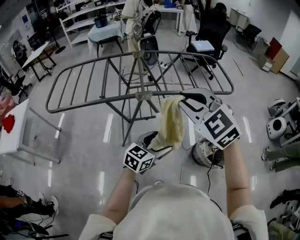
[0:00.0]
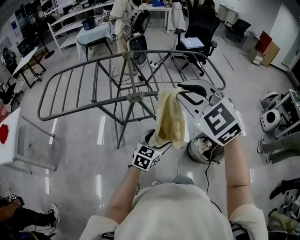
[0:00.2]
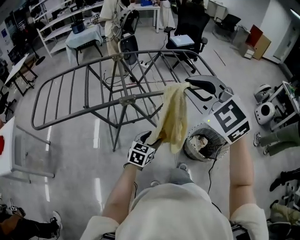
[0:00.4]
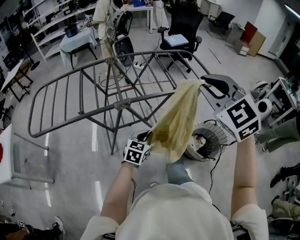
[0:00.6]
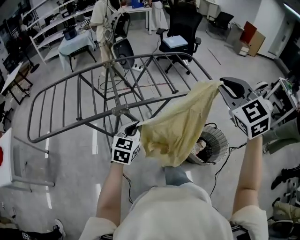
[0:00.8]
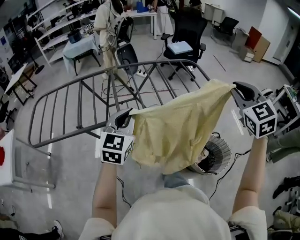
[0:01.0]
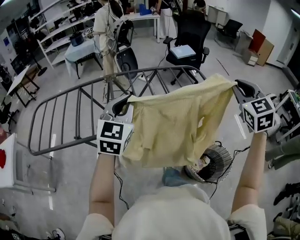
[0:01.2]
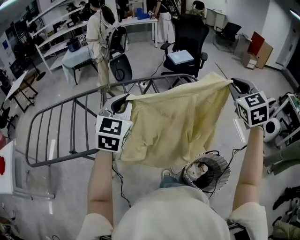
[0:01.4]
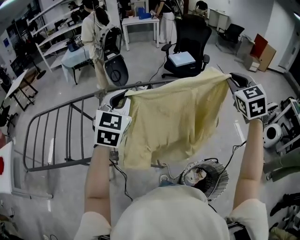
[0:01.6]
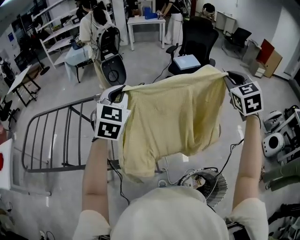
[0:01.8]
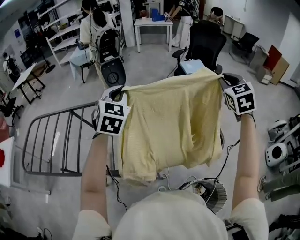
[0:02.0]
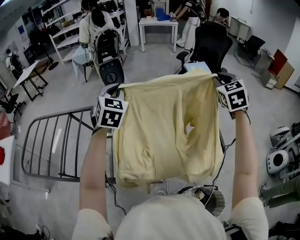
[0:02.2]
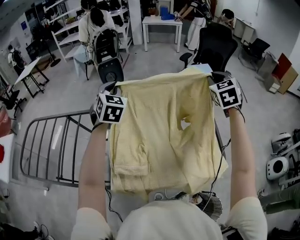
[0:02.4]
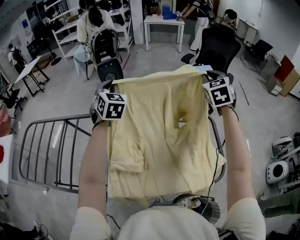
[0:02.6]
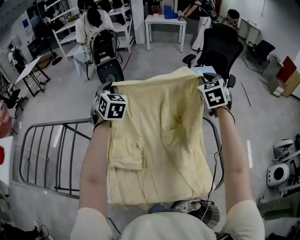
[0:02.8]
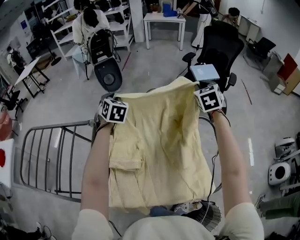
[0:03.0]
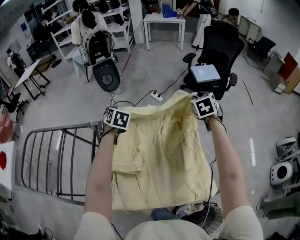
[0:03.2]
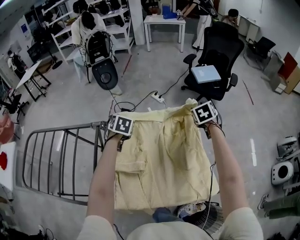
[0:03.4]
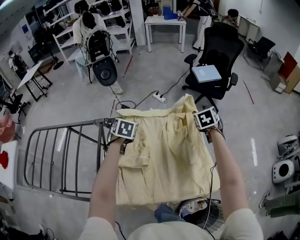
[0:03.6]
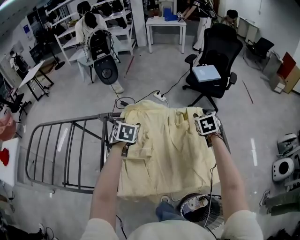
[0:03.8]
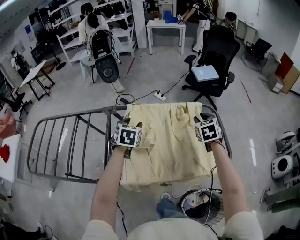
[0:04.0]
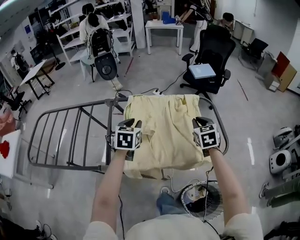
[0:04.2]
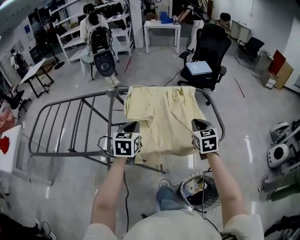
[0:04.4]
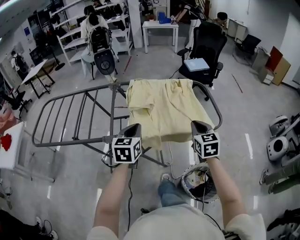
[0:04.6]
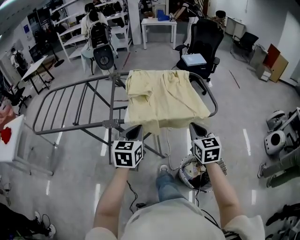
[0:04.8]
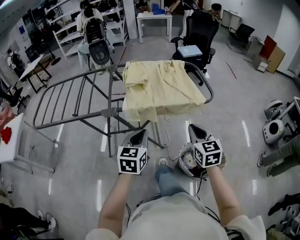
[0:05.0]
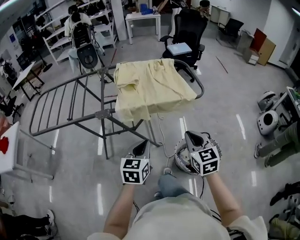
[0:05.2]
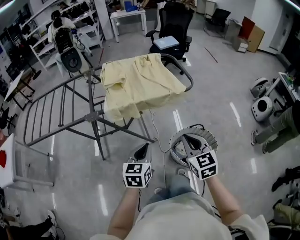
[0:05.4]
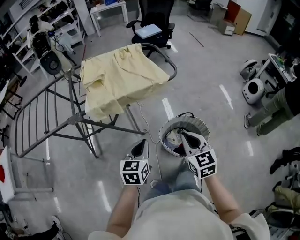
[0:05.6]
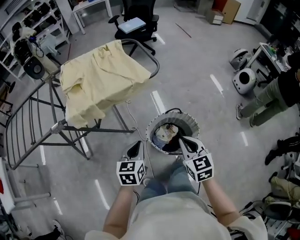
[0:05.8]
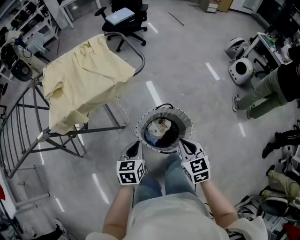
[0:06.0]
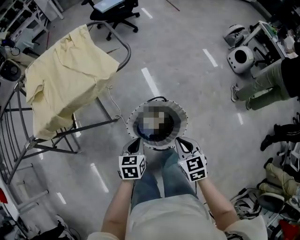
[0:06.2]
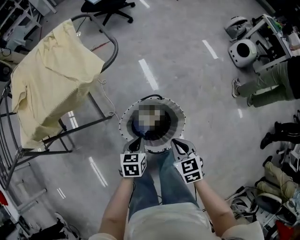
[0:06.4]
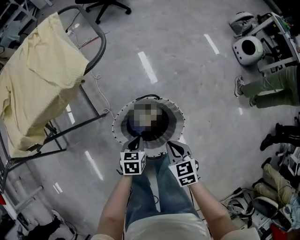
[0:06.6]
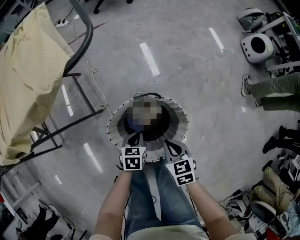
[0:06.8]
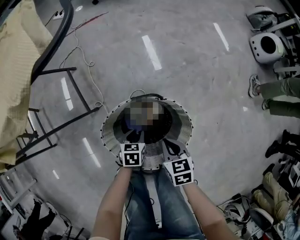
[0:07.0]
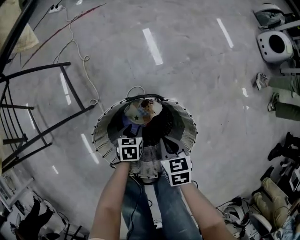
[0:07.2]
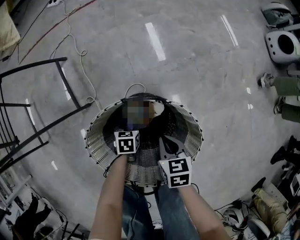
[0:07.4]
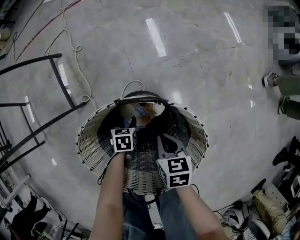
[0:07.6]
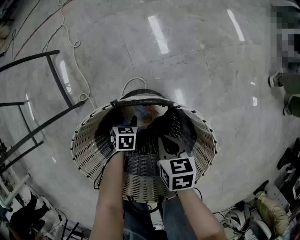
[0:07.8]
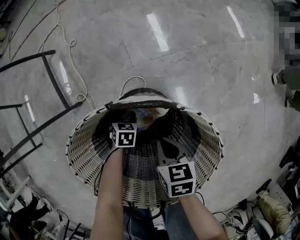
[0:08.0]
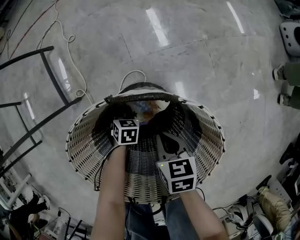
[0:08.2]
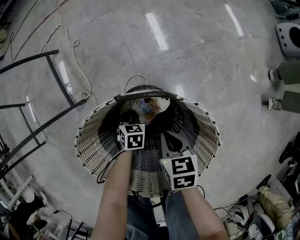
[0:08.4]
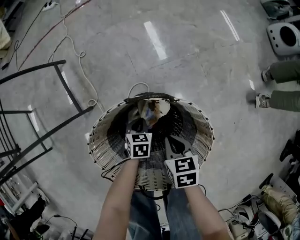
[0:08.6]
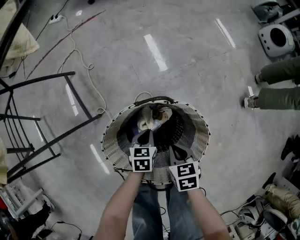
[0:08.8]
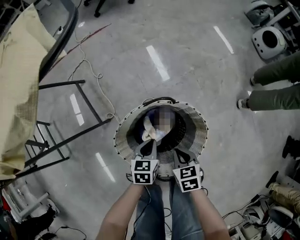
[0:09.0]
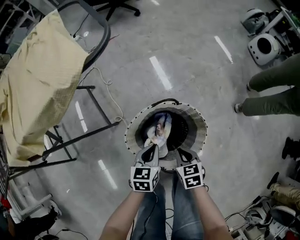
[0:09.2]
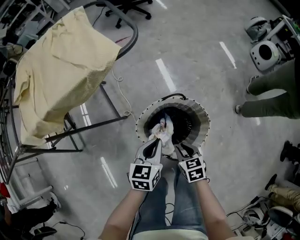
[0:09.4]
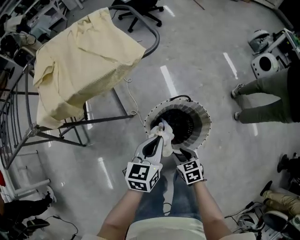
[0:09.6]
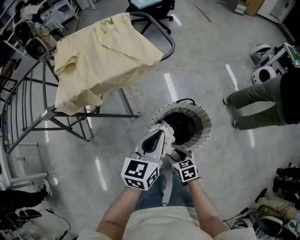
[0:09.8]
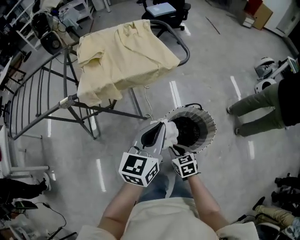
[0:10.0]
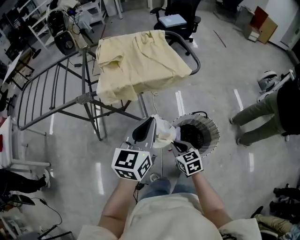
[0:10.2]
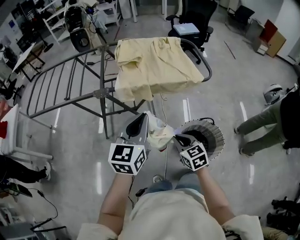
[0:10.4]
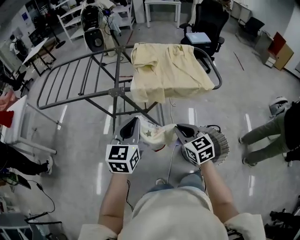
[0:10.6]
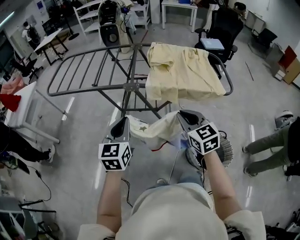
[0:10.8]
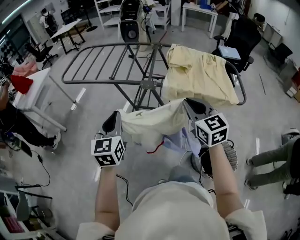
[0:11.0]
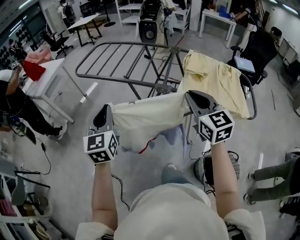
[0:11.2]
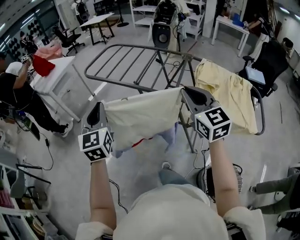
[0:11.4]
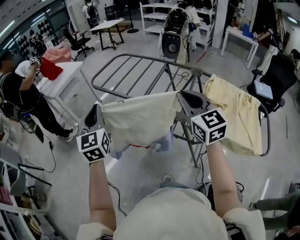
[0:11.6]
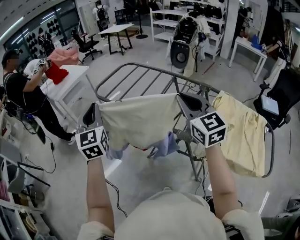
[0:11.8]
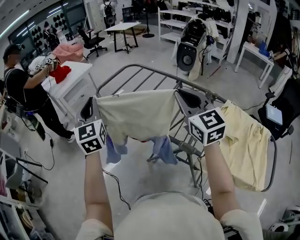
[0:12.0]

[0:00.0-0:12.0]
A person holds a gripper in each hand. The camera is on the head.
0:00.0 to 0:01.6: The left gripper goes roughly 50 cm forward and upward, rotates roughly 40 degrees, and closes up. Meanwhile the right gripper goes approximately 50 cm forward and to the right, and turns by some 40 degrees.
0:01.6 to 0:03.0: Both grippers travel together forward, some 40 cm. The left gripper turns by about 40 degrees.
0:03.0 to 0:04.4: The grippers both shift backward by roughly 40 cm. The right gripper opens and closes again, while the left gripper changes its angle by about 30 degrees, and opens, then closes again.
0:04.4 to 0:06.0: The pair of grippers is taken backward and to the right, some 50 cm. The left gripper goes some 20 cm downward, and rotates roughly 30 degrees.
0:06.0 to 0:07.6: The grippers both shift downward by approximately 60 cm. The left gripper points its fingers some 30 degrees further downward, and opens its fingers; the right gripper swivels about 30 degrees.
0:07.6 to 0:09.0: The left gripper moves upward, approximately 25 cm, changes its angle by roughly 20 degrees, and closes its fingers. The right gripper moves upward and backward, roughly 15 cm.
0:09.0 to 0:10.4: Both grippers travel together upward, about 50 cm. The right gripper turns by roughly 40 degrees, and opens, then closes once more. Meanwhile the left gripper tips its fingers upward by approximately 40 degrees.
0:10.4 to 0:12.0: Both grippers are carried roughly 60 cm. The right gripper tips its fingers upward by some 30 degrees. The left gripper changes its angle by some 80 degrees.

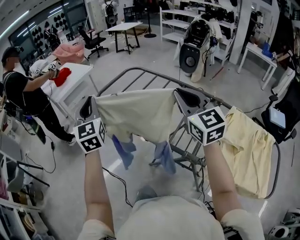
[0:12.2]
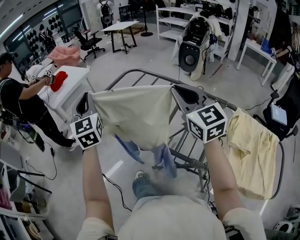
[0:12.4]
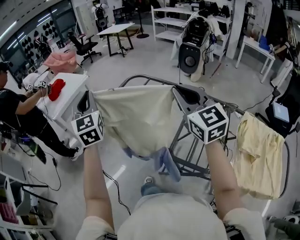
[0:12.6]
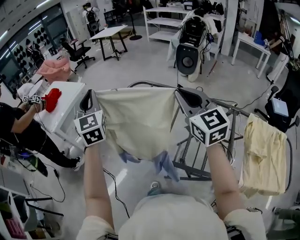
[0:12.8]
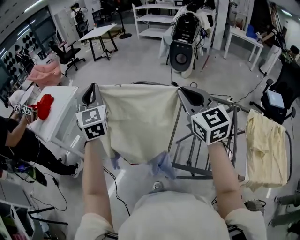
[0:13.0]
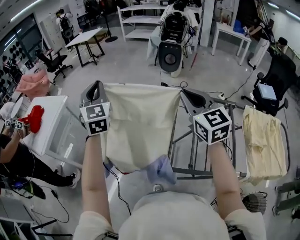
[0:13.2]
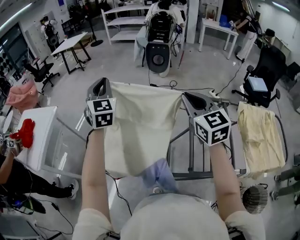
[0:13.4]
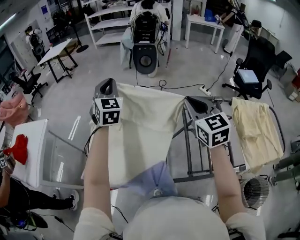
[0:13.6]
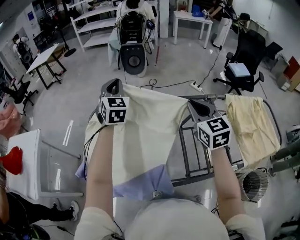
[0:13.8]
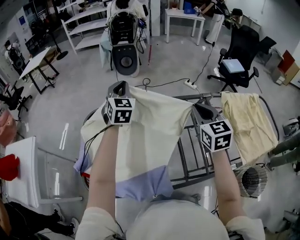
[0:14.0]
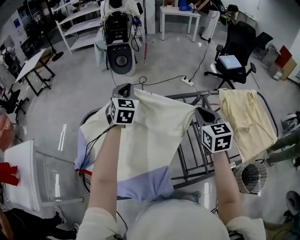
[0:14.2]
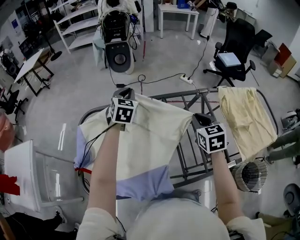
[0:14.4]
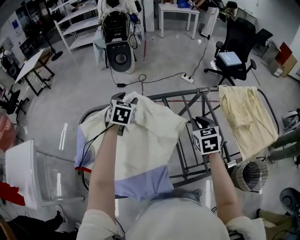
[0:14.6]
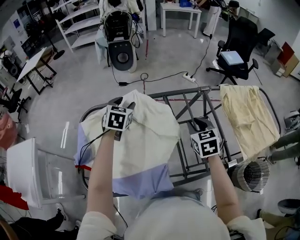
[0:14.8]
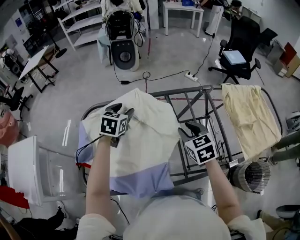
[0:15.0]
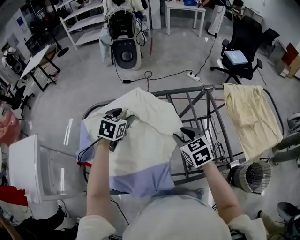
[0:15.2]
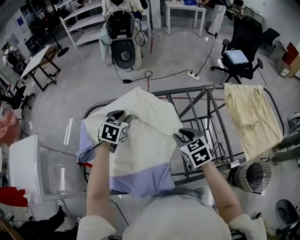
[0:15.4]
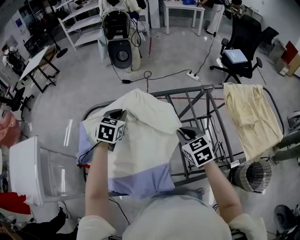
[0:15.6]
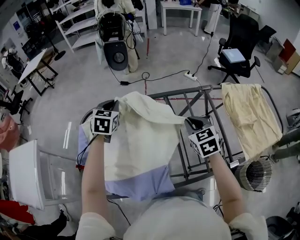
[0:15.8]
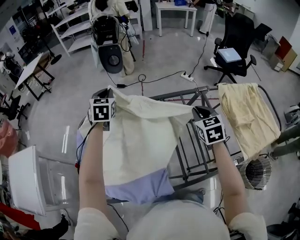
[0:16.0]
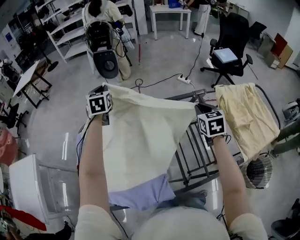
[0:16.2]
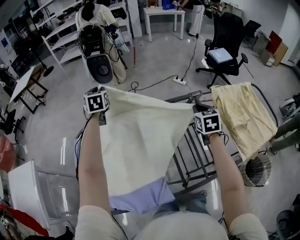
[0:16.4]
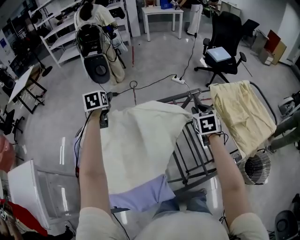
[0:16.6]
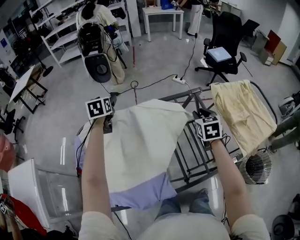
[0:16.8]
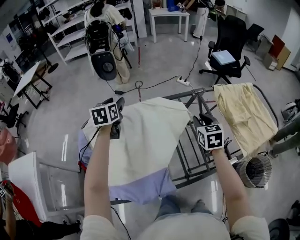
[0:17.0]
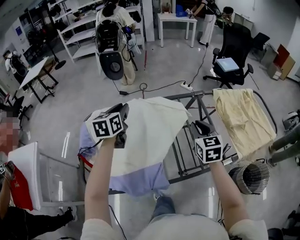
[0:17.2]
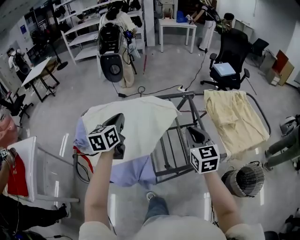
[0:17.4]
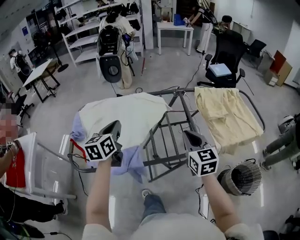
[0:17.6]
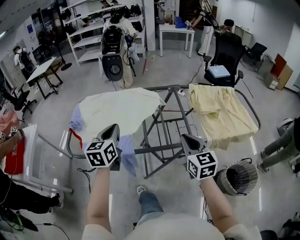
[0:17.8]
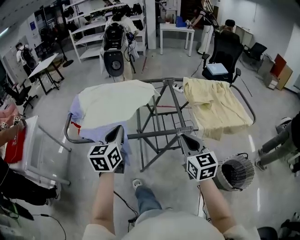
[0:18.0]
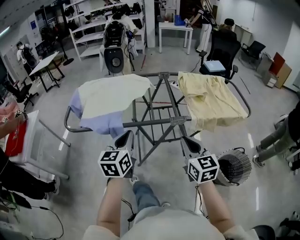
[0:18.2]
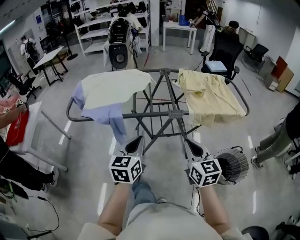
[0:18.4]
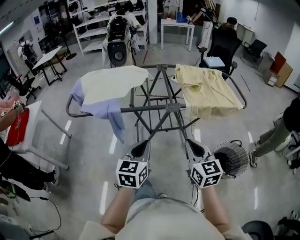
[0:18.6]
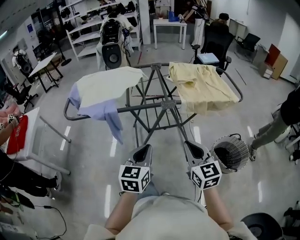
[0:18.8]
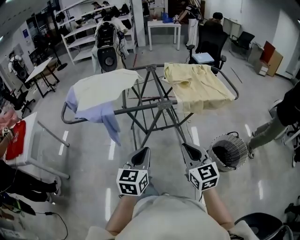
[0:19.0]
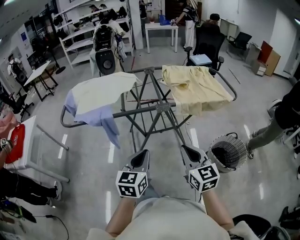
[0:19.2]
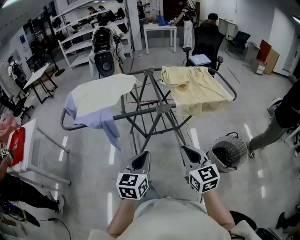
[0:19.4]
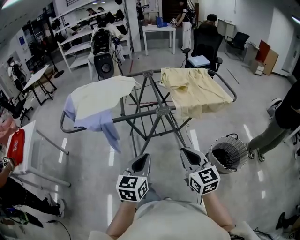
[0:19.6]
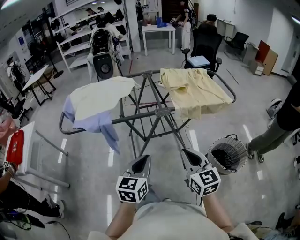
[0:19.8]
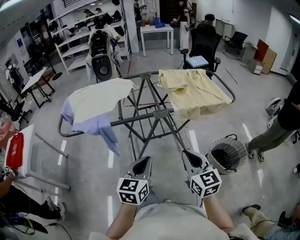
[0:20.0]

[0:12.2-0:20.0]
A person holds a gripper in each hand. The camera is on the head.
0:12.2 to 0:13.8: The right gripper moves approximately 25 cm, and rotates approximately 50 degrees; the left gripper changes place by about 50 cm, and changes its angle by approximately 50 degrees.
0:13.8 to 0:15.4: The grippers both shift downward by approximately 20 cm. The right gripper swivels about 20 degrees, and opens up, while the left gripper tilts its fingers roughly 30 degrees downward, and opens its fingers.
0:15.4 to 0:16.8: The right gripper is displaced to the right and forward by approximately 20 cm, and changes its angle by about 30 degrees. The left gripper moves forward, roughly 15 cm, rotates approximately 20 degrees, and opens.
0:16.8 to 0:18.4: Both grippers are carried backward and to the right, some 60 cm. The left gripper rotates about 20 degrees, and closes its fingers. Meanwhile the right gripper turns by approximately 30 degrees, and closes up.
0:18.4 to 0:20.0: The right gripper goes some 5 cm backward. The left gripper goes approximately 10 cm backward and to the right.

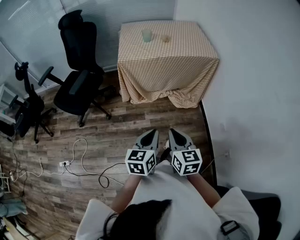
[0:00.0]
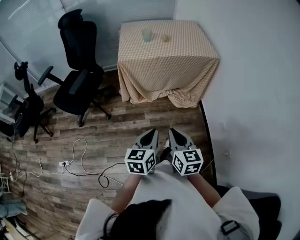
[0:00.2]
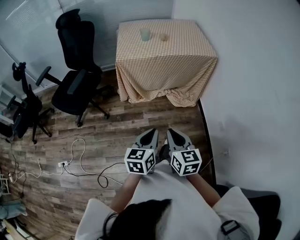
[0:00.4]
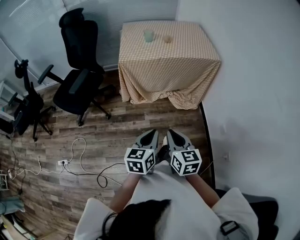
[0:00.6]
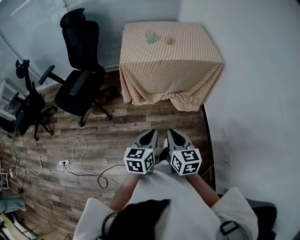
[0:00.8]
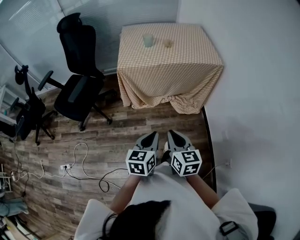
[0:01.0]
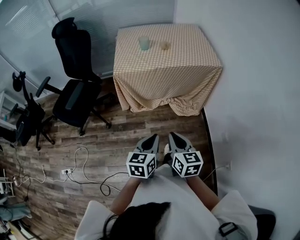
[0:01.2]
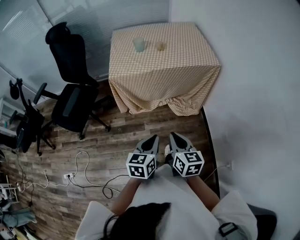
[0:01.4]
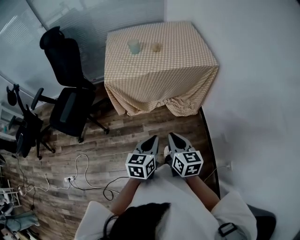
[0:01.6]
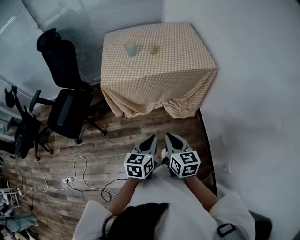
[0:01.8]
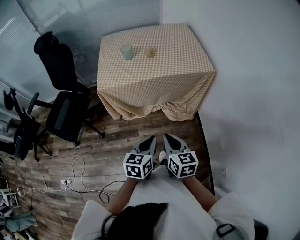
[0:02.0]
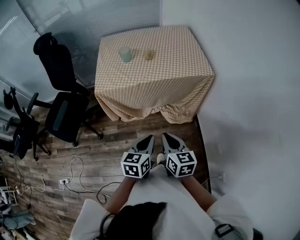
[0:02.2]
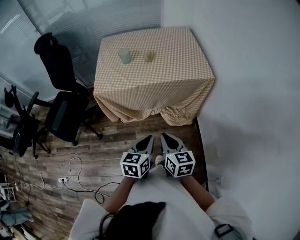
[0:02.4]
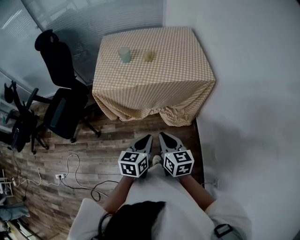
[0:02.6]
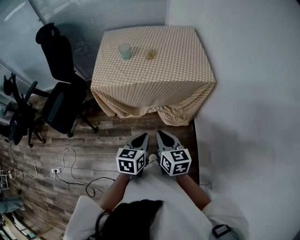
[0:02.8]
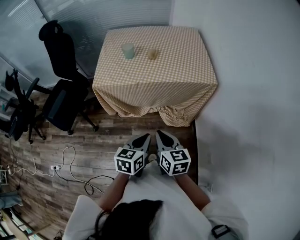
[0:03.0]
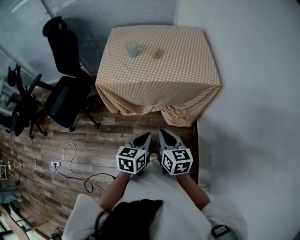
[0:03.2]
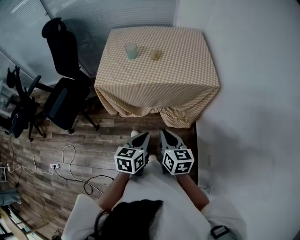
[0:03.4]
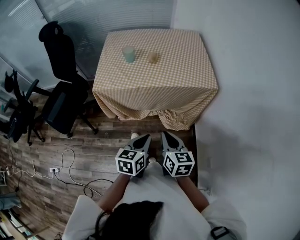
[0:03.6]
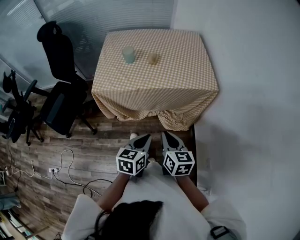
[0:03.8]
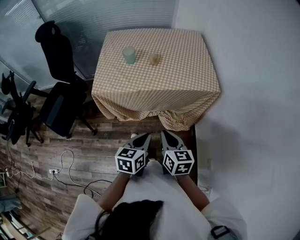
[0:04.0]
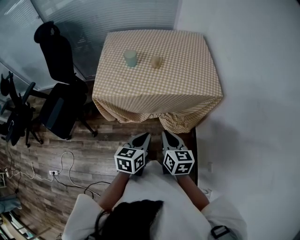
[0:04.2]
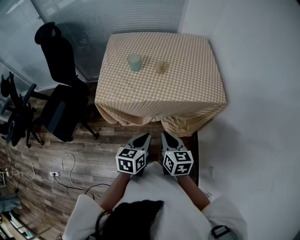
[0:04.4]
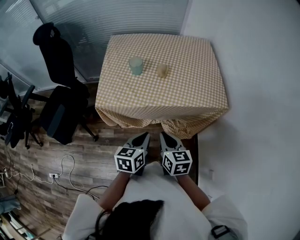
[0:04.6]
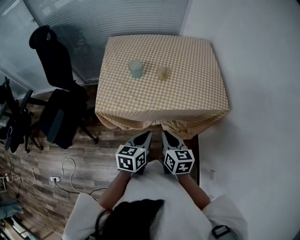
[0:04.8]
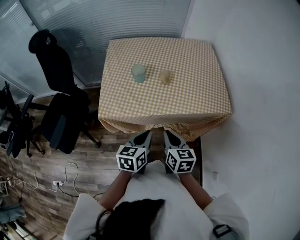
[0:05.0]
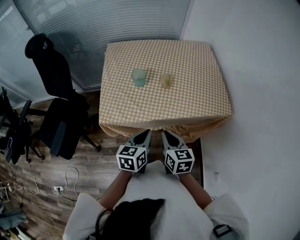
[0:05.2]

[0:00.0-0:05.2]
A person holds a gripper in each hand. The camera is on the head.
0:00.0 to 0:01.8: Both grippers travel together forward, approximately 20 cm.
0:01.8 to 0:03.4: Both grippers move forward and to the right, approximately 10 cm.
0:03.4 to 0:05.2: The grippers both shift forward and to the left by roughly 25 cm.
